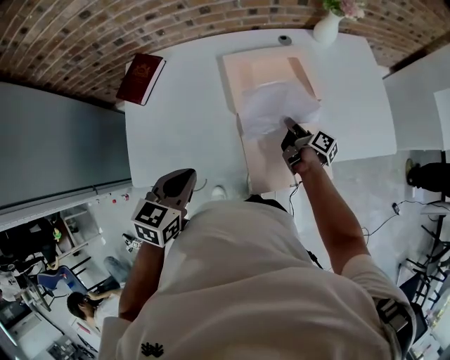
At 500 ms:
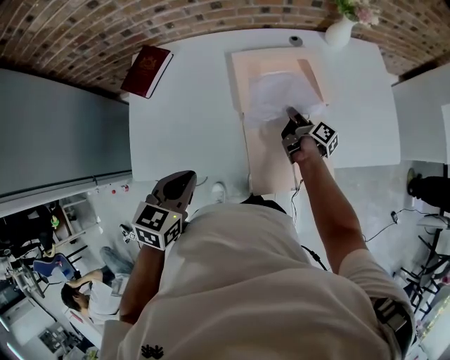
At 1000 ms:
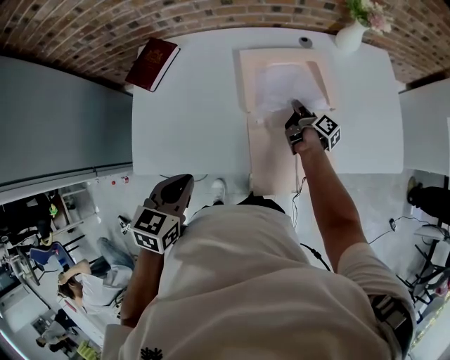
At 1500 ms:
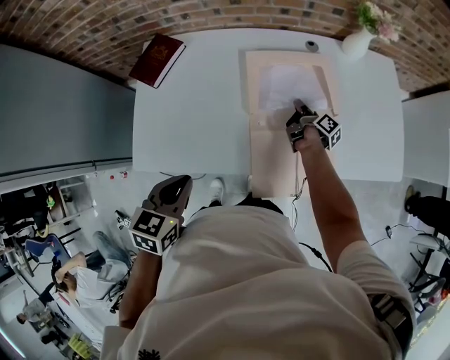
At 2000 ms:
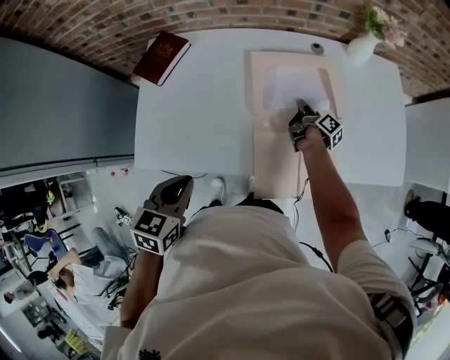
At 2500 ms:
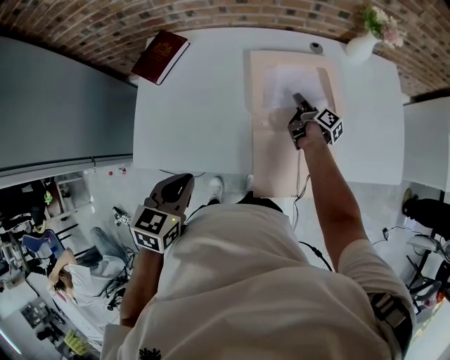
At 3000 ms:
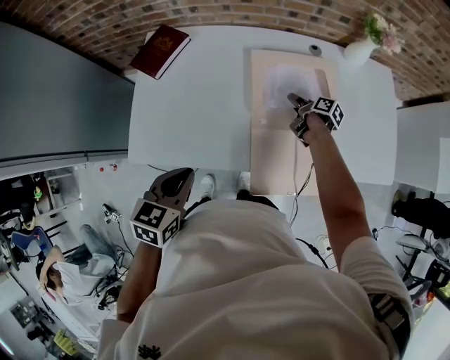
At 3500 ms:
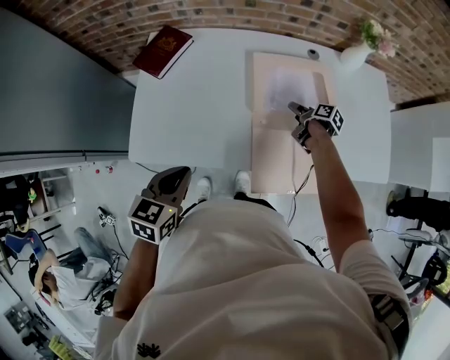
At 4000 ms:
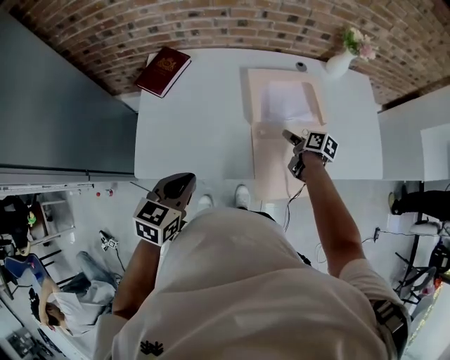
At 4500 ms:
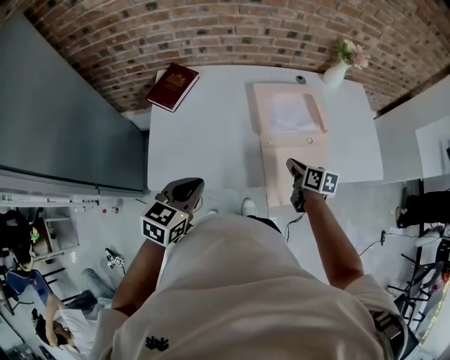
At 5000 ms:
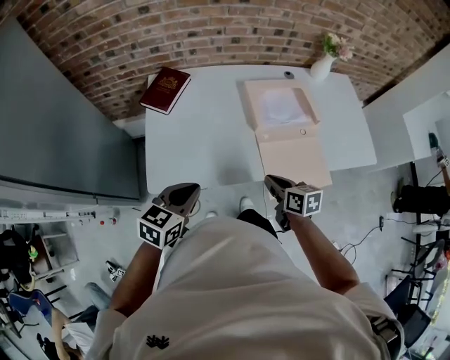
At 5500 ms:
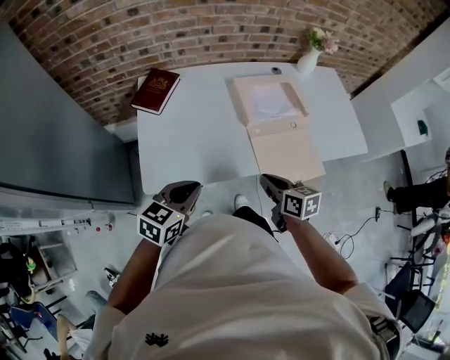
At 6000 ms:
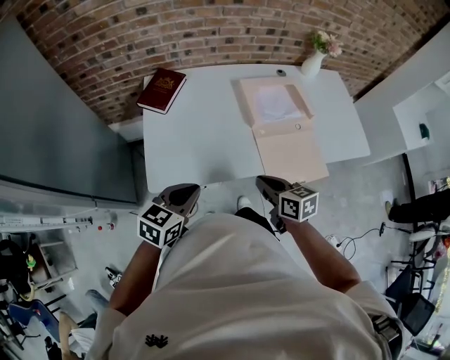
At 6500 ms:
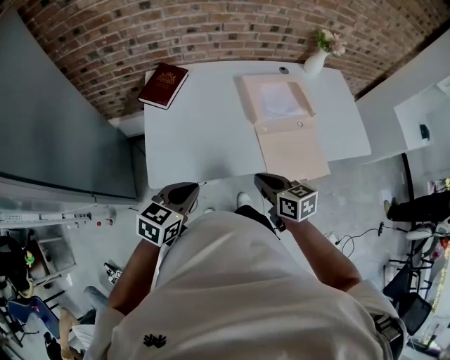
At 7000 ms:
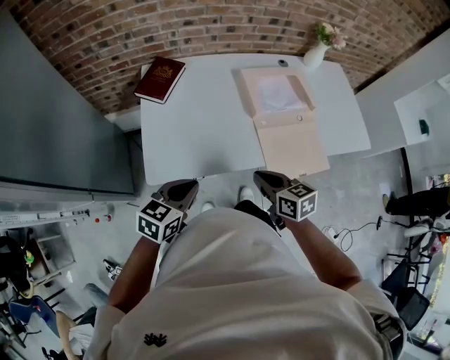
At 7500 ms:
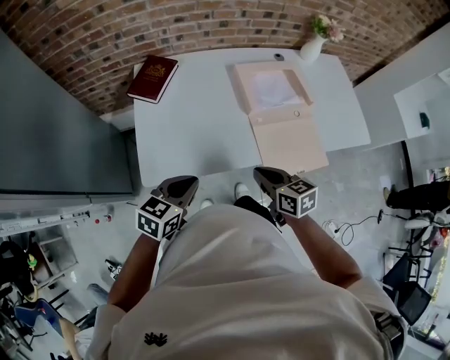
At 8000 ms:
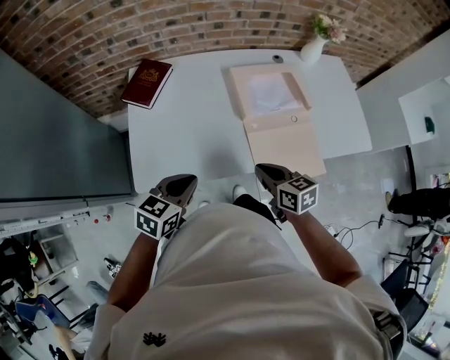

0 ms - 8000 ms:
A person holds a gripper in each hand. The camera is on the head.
0 ms - 2000 ms: The right gripper is displaced forward by roughly 10 cm.
2000 ms - 4000 ms: The left gripper heads to the left, covering roughly 5 cm; the right gripper is displaced backward, upward and to the left by roughly 15 cm, changes its angle by some 40 degrees, and opens up.
4000 ms - 6000 ms: The right gripper goes about 35 cm backward, to the left and upward, swivels some 30 degrees, and closes; the left gripper travels to the left and backward by approximately 10 cm.
6000 ms - 8000 ms: Both grippers travel together forward, about 5 cm.

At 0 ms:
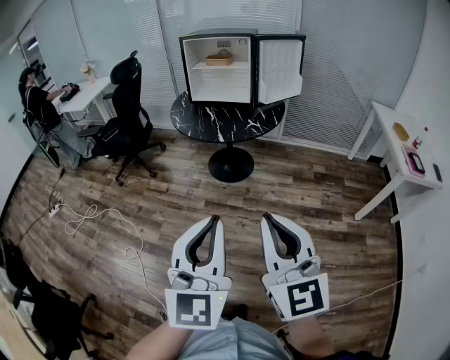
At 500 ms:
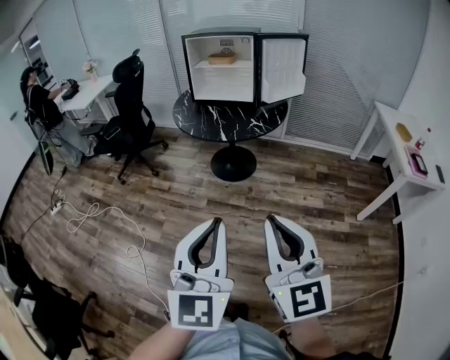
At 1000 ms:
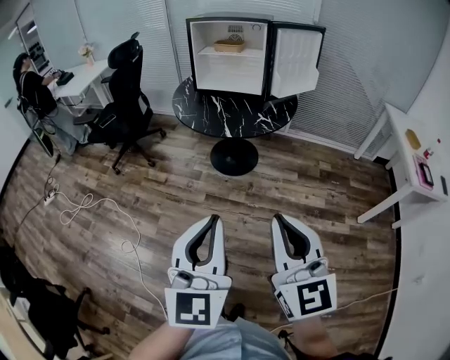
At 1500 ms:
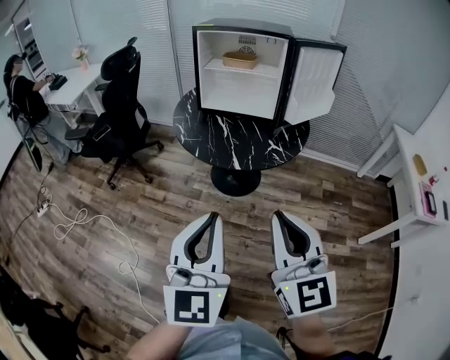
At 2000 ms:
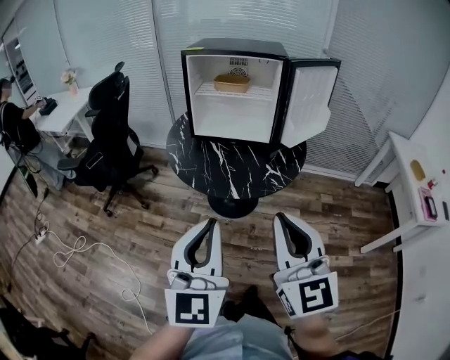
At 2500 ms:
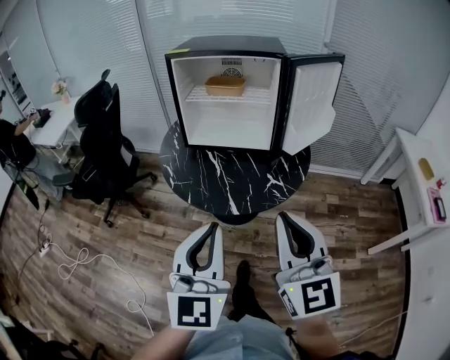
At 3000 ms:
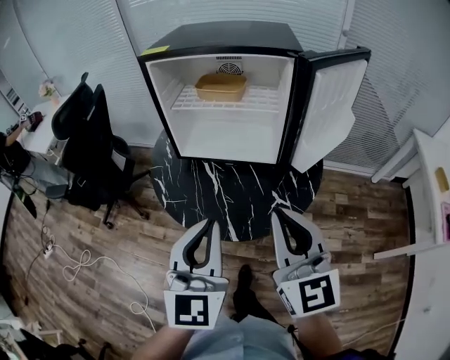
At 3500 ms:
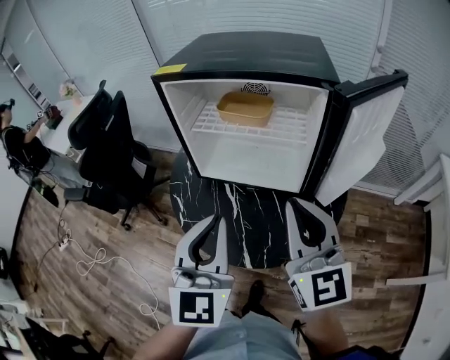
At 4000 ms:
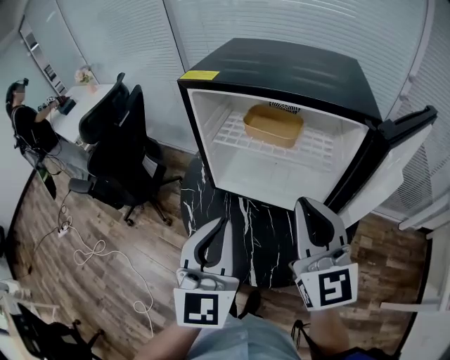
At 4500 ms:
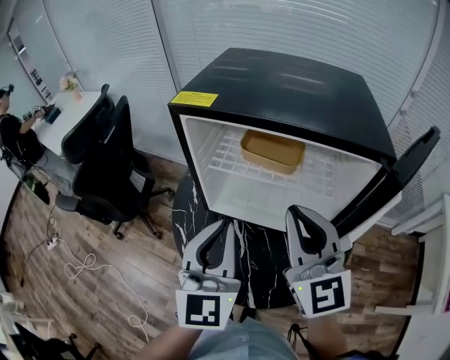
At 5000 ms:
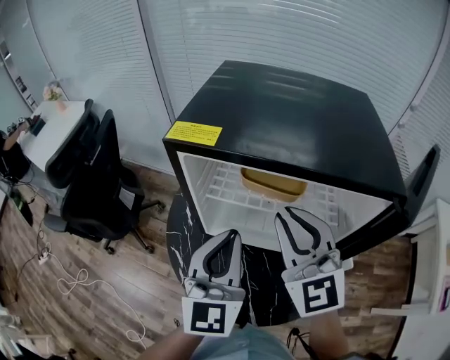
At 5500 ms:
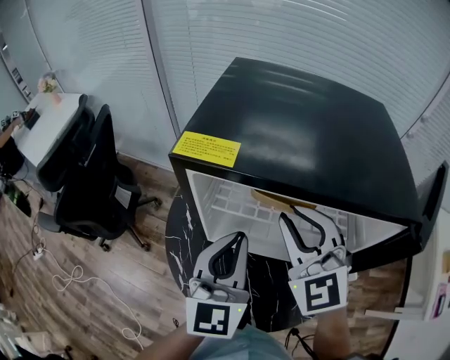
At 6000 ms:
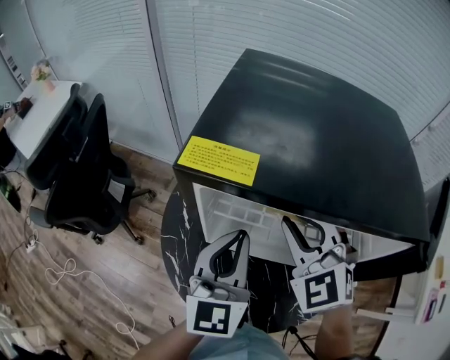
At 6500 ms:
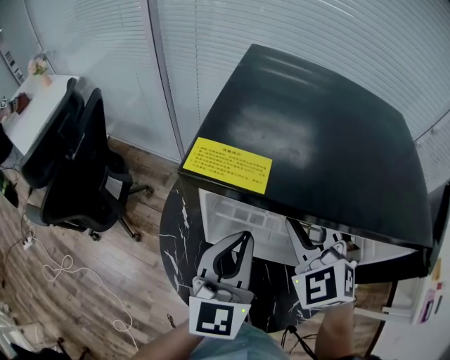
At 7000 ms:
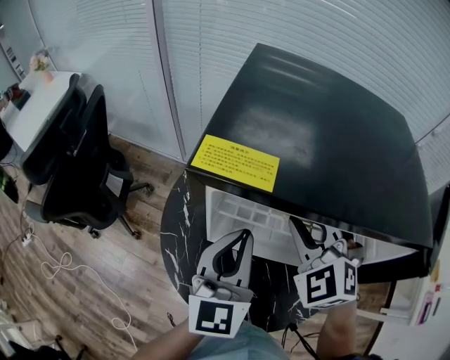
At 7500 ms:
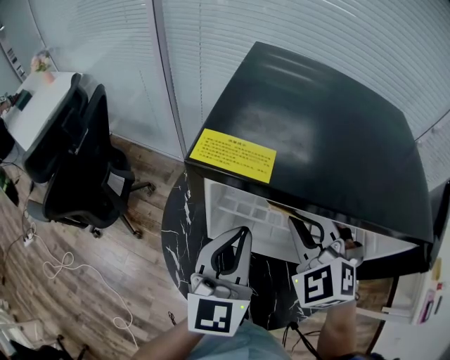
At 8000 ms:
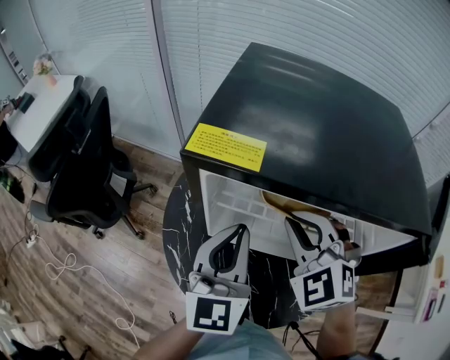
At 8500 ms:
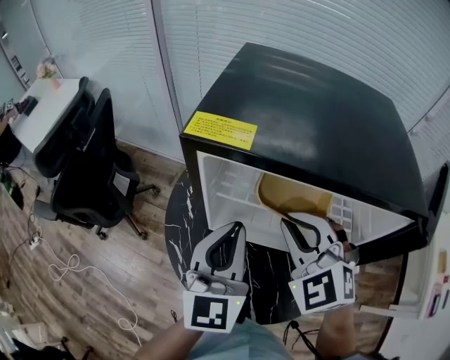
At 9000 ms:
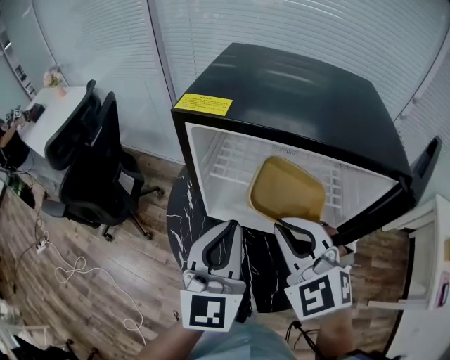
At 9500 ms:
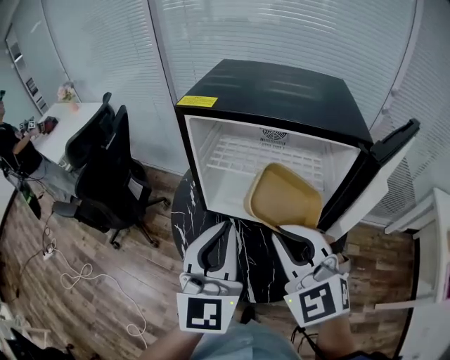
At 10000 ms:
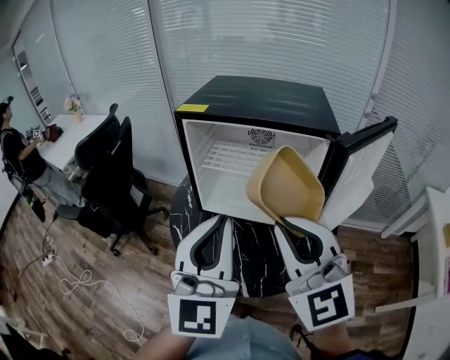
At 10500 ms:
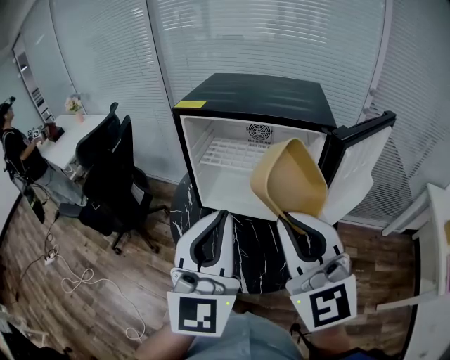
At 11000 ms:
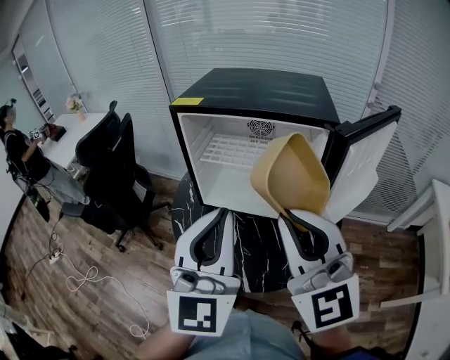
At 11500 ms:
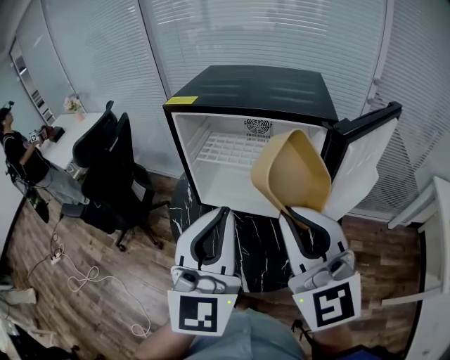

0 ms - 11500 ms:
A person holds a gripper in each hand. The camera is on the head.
0 ms - 2000 ms: The grippers both shift forward by approximately 35 cm.
2000 ms - 4000 ms: Both grippers are carried forward, about 40 cm.
4000 ms - 6000 ms: Both grippers travel together forward, some 25 cm. The right gripper changes its angle by about 40 degrees.
6000 ms - 7500 ms: The grippers stay close to where they were, moving slightly.
7500 ms - 9500 ms: The right gripper is displaced backward by some 25 cm, and rotates approximately 20 degrees. Meanwhile the left gripper goes roughly 20 cm backward and upward.
9500 ms - 11500 ms: The left gripper travels backward and upward by some 10 cm, while the right gripper heads upward, backward and to the right, covering some 10 cm, and swivels roughly 20 degrees.

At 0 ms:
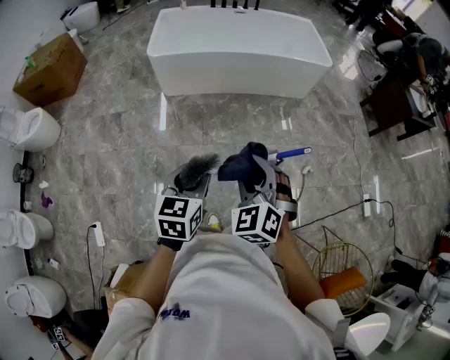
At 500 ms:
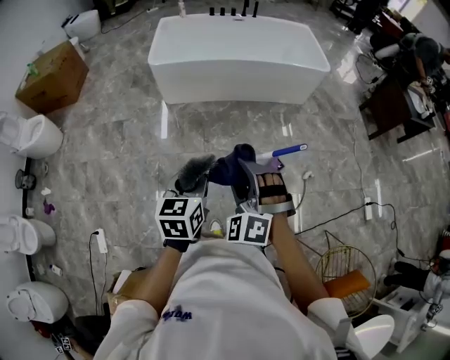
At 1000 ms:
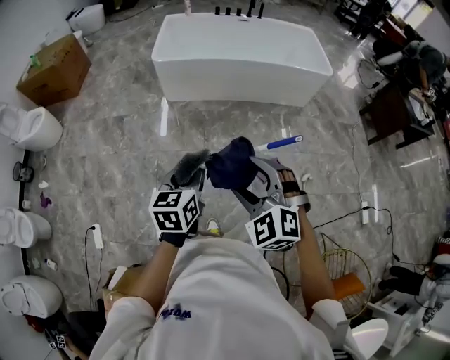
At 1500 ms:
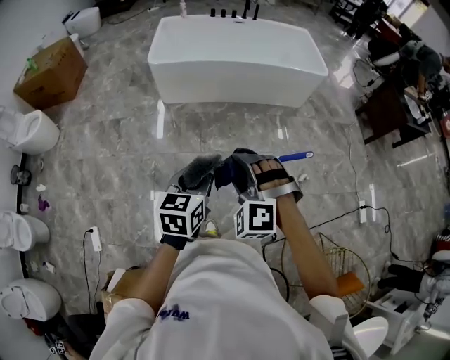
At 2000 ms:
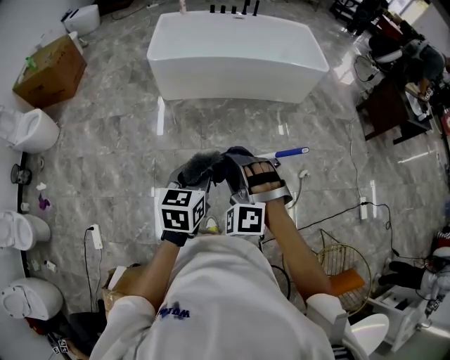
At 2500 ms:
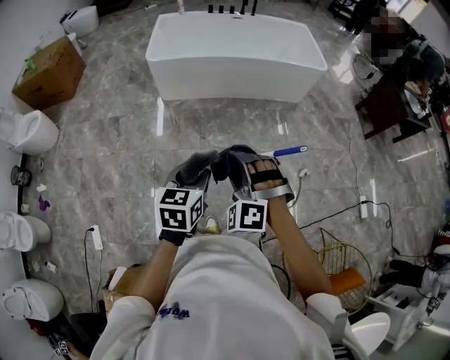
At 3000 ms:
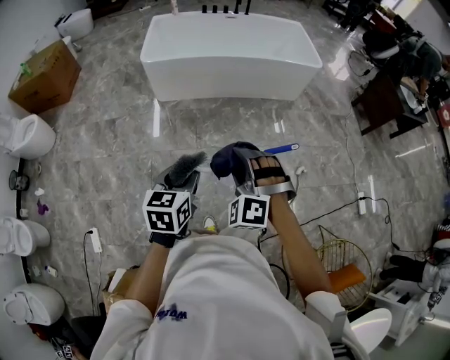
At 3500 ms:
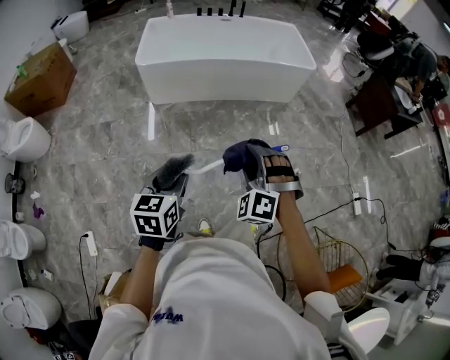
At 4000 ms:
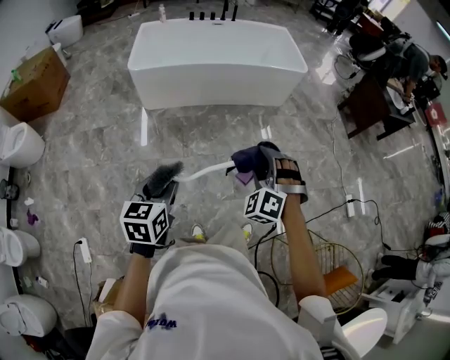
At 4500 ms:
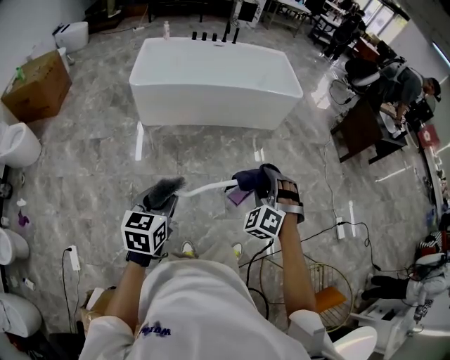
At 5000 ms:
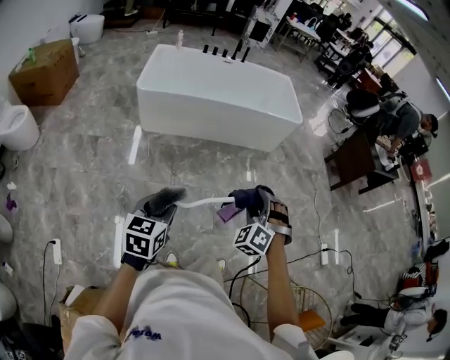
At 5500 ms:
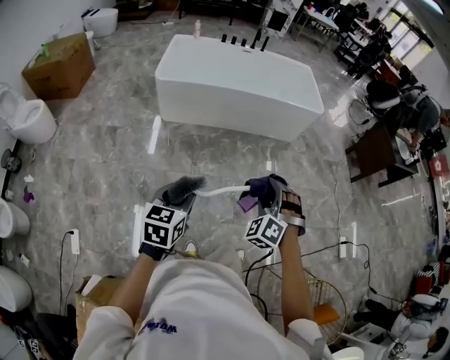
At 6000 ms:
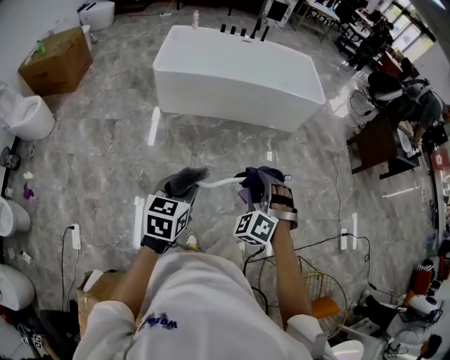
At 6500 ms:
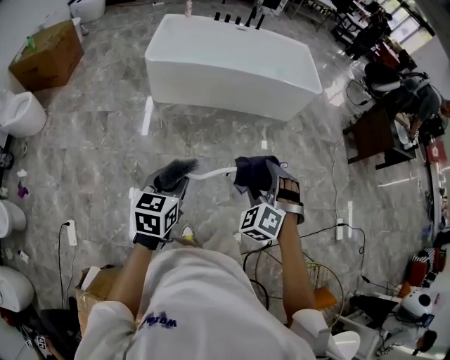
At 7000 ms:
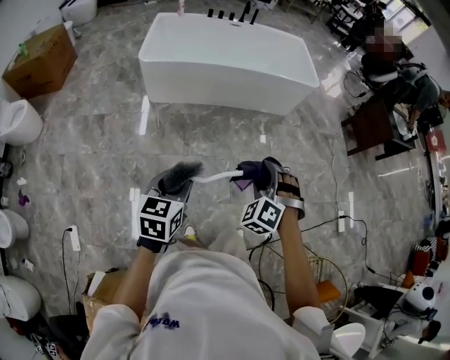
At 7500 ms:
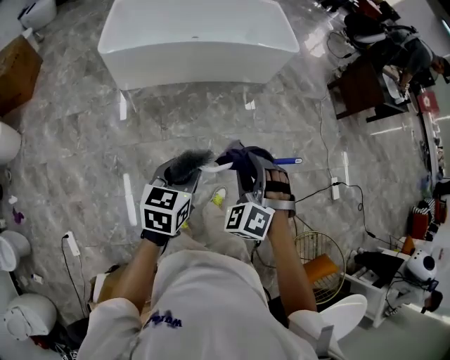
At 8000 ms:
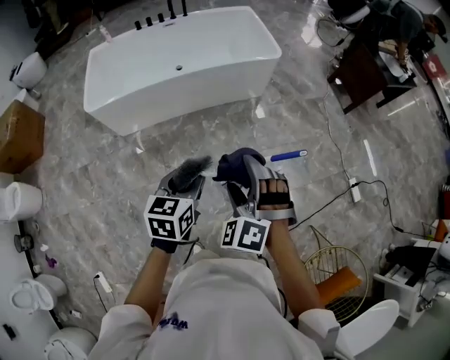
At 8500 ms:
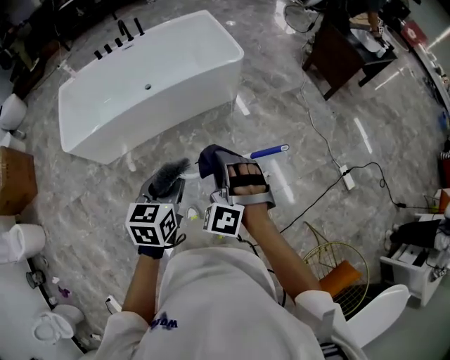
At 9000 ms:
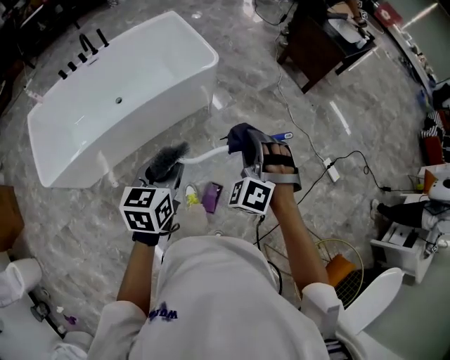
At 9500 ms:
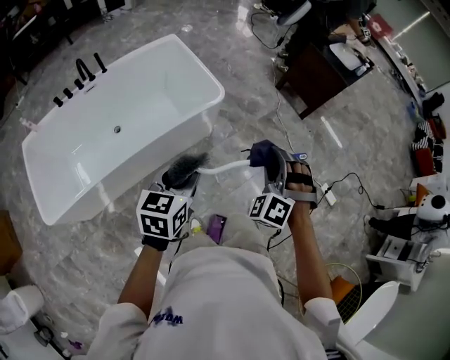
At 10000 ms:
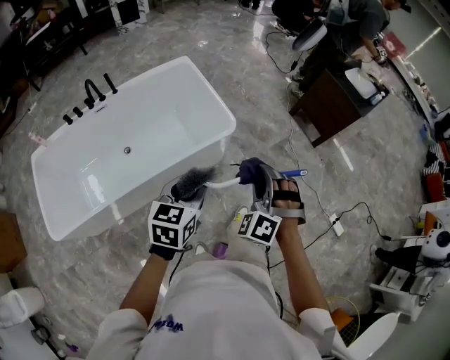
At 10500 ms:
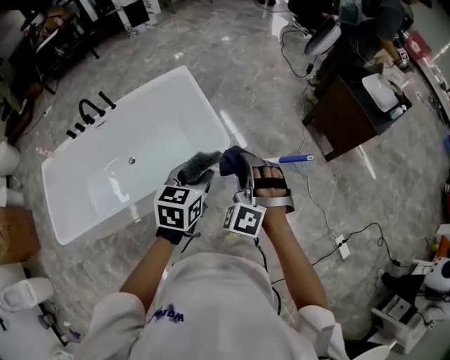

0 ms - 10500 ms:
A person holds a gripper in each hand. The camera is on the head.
6500 ms - 8500 ms: The left gripper moves some 50 cm, and swivels about 20 degrees.
8500 ms - 10500 ms: The left gripper moves some 60 cm.
